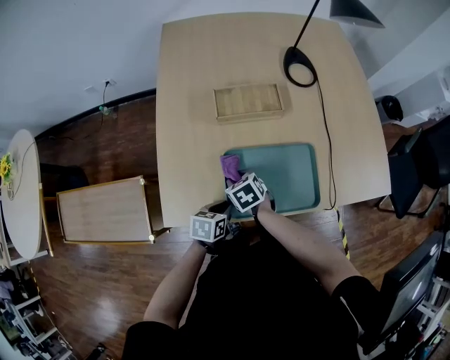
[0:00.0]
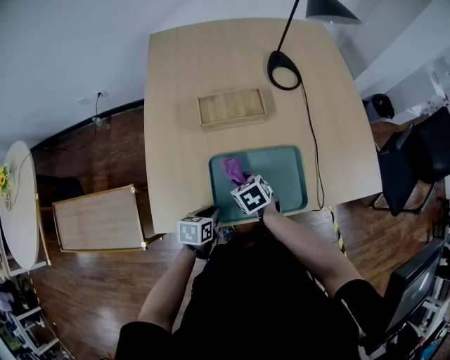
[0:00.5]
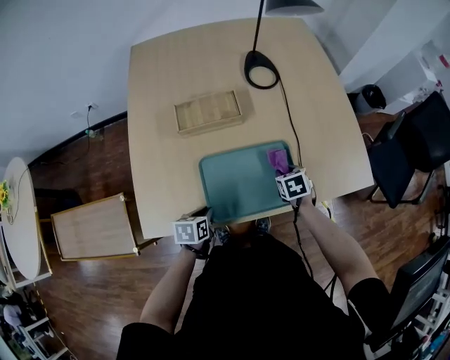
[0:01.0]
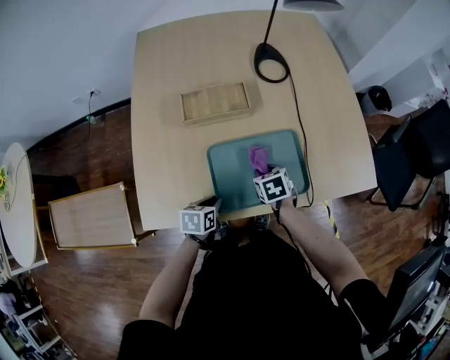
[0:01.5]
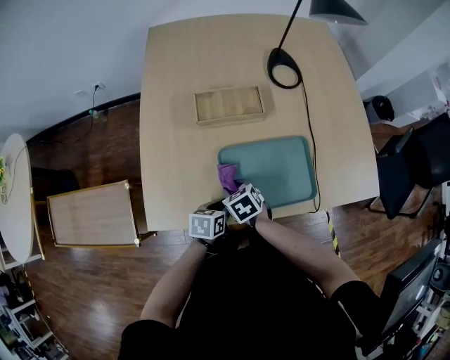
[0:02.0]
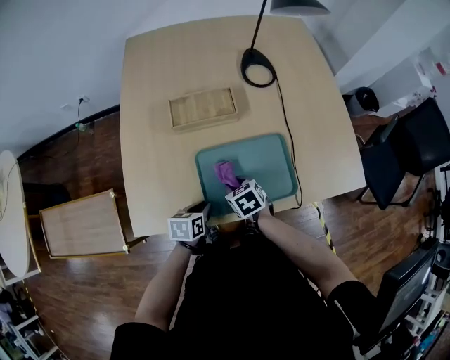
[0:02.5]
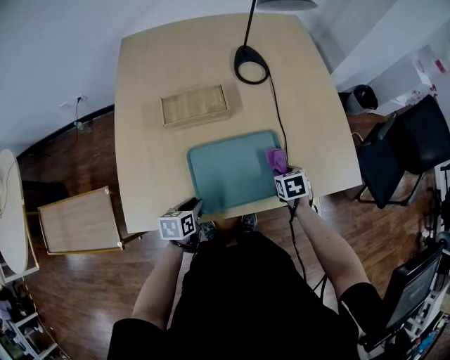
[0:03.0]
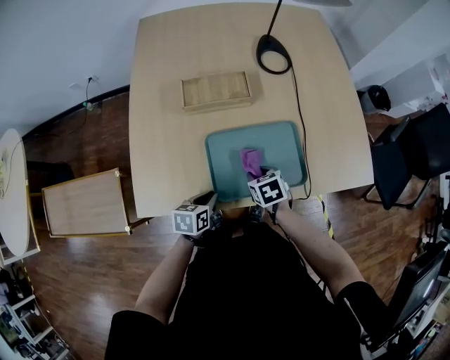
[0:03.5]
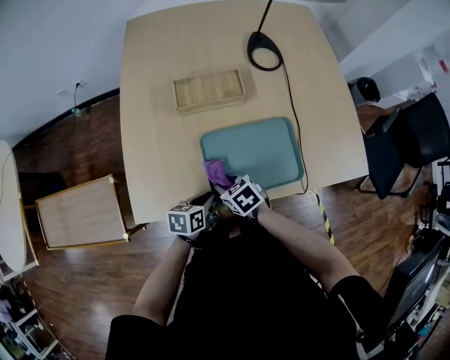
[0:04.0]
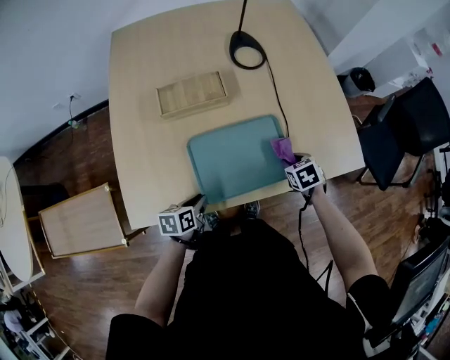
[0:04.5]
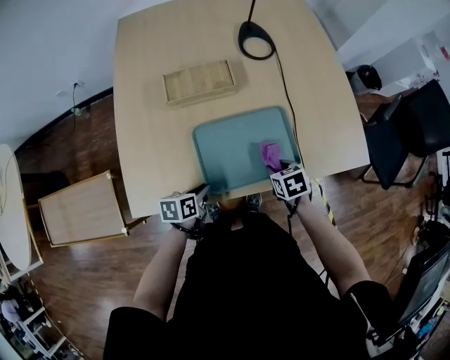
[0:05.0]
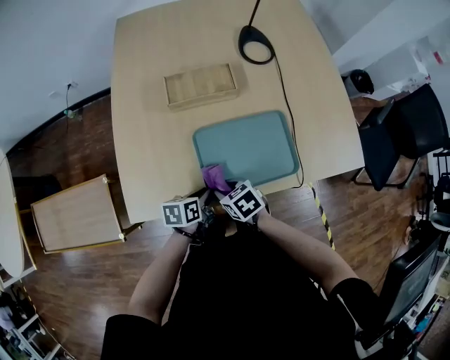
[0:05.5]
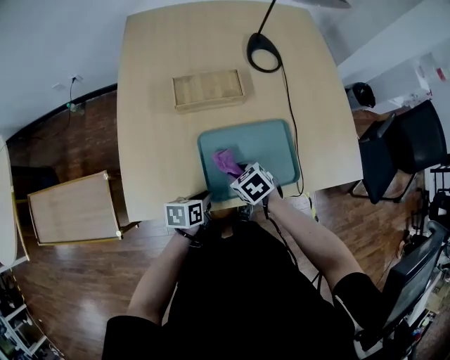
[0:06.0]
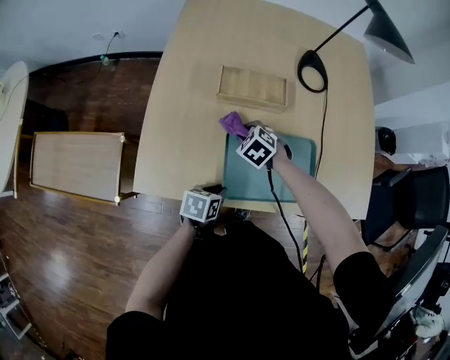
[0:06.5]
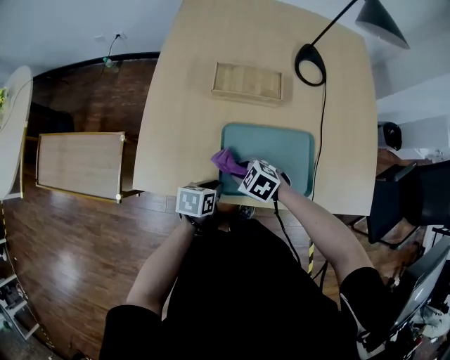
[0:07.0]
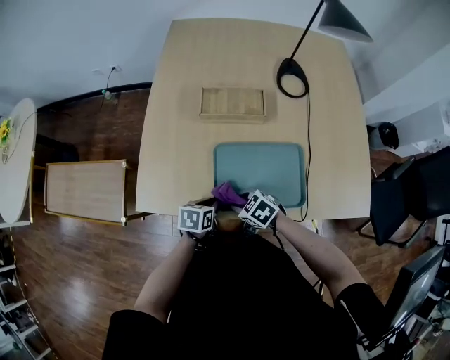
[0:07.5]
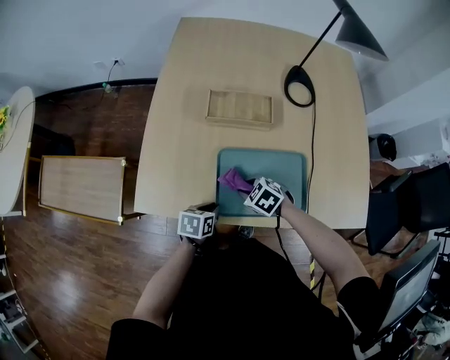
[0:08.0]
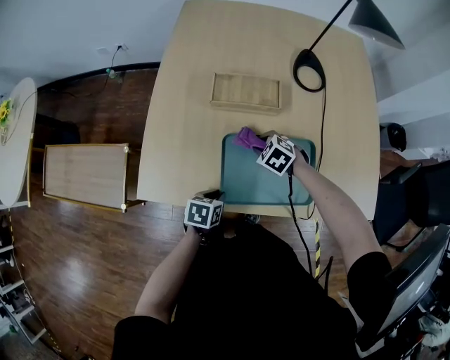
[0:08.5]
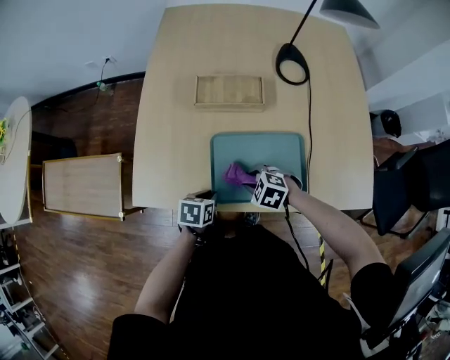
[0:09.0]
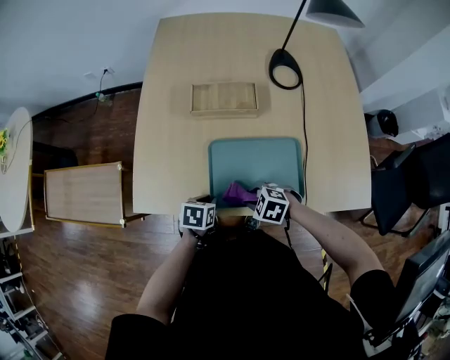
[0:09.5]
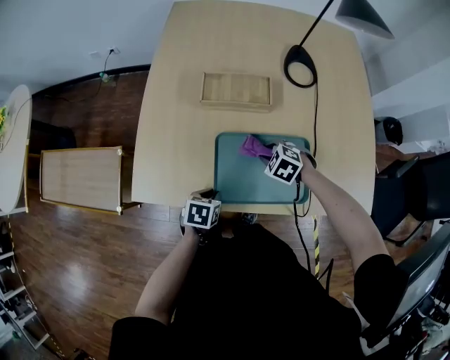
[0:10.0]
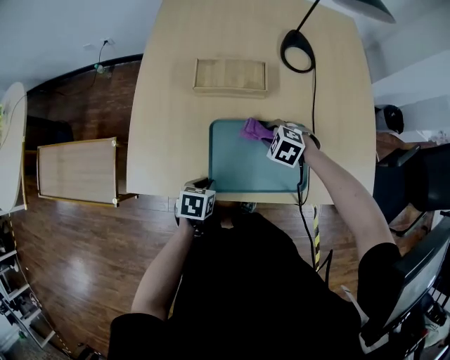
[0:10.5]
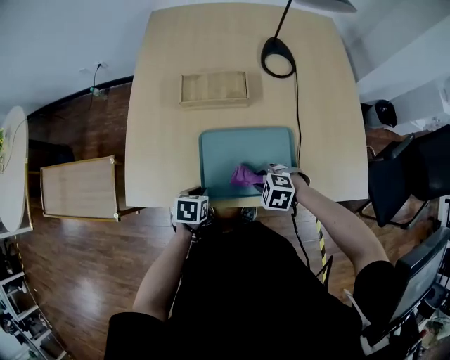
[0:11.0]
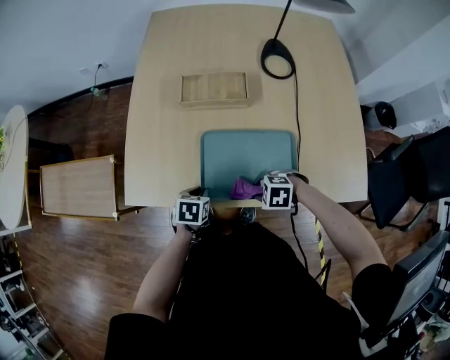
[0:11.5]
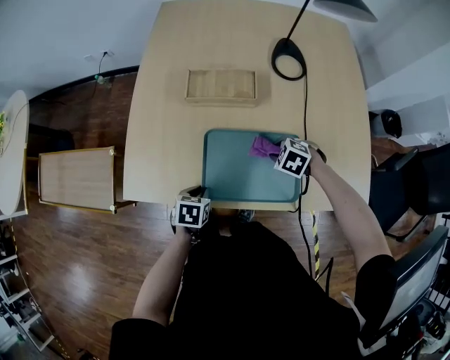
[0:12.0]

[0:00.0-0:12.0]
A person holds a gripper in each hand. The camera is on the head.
0.0 to 2.0 s: The left gripper shifts roughly 5 cm to the right, while the right gripper reaches some 30 cm to the right, then returns.
2.0 to 4.0 s: The right gripper reaches about 30 cm to the right, then returns.
4.0 to 6.0 s: The right gripper goes left and right, about 30 cm each way, reversing 2 times.
6.0 to 8.0 s: The right gripper rotates some 30 degrees.
8.0 to 10.0 s: The right gripper ends up roughly 10 cm from where it was.

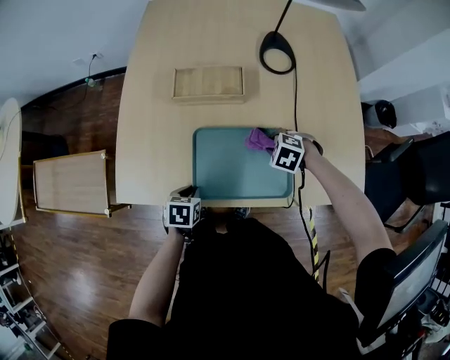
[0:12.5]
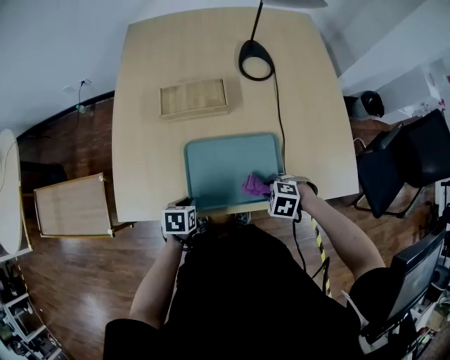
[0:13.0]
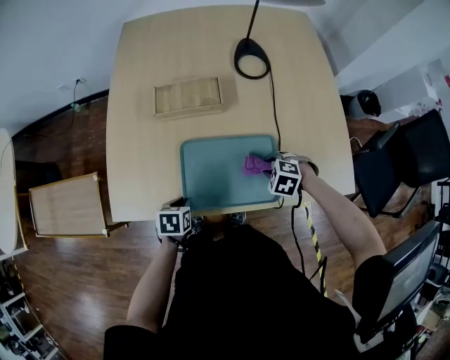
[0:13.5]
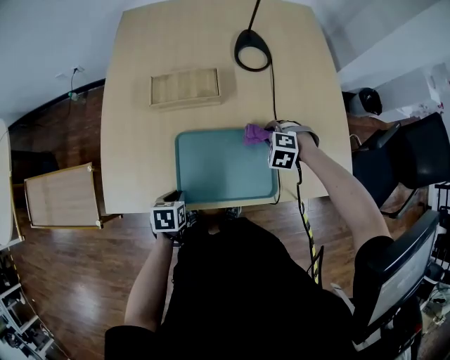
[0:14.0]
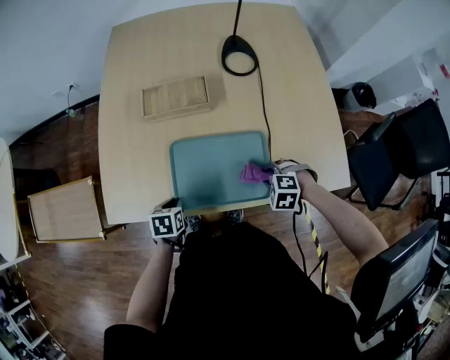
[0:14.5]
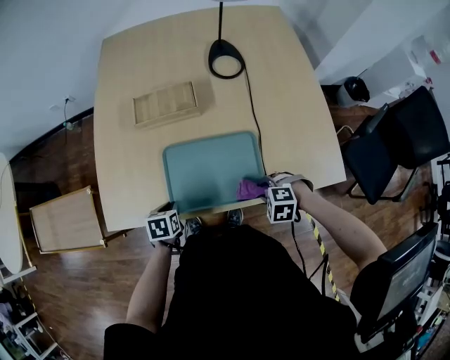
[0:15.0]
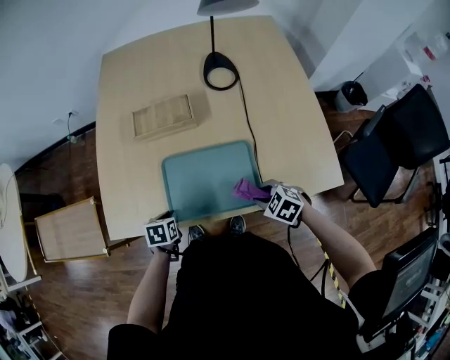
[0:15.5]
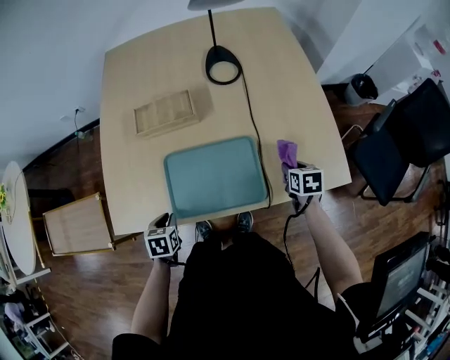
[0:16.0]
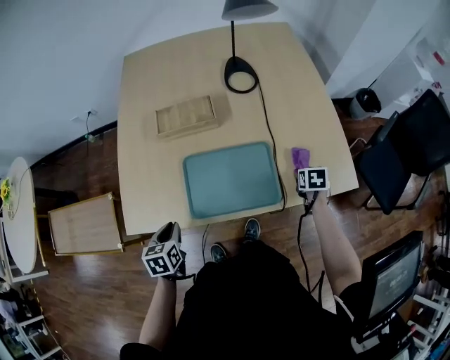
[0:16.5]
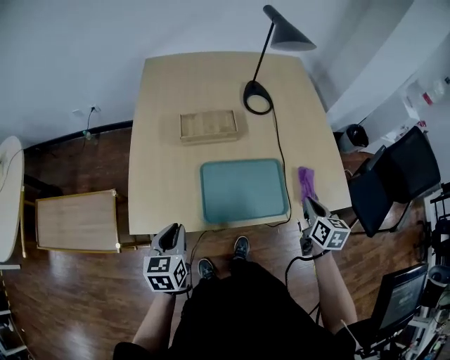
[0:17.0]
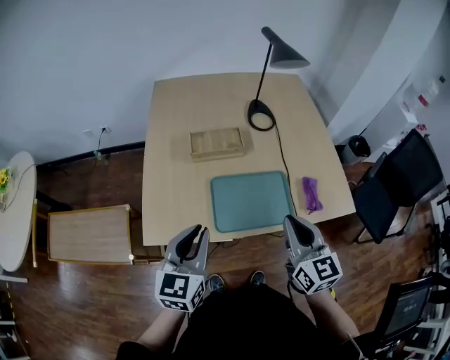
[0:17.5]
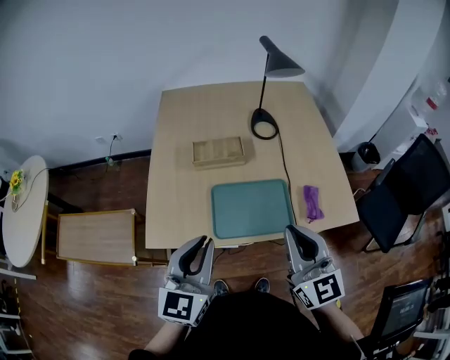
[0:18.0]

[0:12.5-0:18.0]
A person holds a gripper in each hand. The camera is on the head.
12.5 to 14.5 s: The right gripper moves roughly 10 cm.
14.5 to 16.0 s: The right gripper changes place by some 15 cm, and twists approximately 90 degrees clockwise, seen from behind.
16.0 to 18.0 s: The left gripper travels upward by roughly 35 cm, and points its fingers approximately 60 degrees further upward, while the right gripper moves upward, to the left and backward, about 50 cm, points its fingers approximately 60 degrees further upward, and closes.

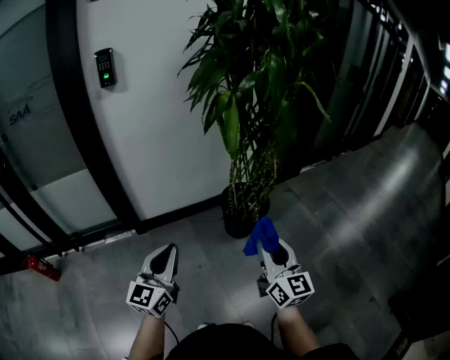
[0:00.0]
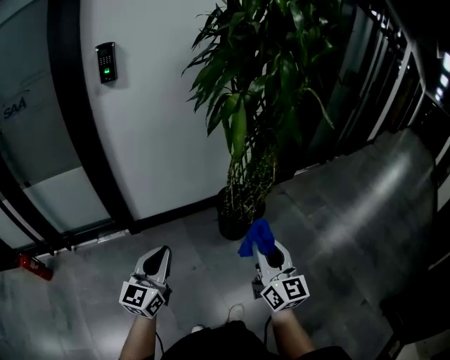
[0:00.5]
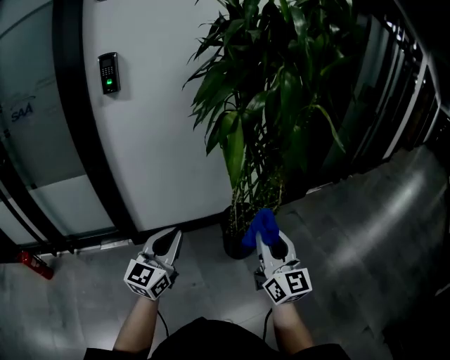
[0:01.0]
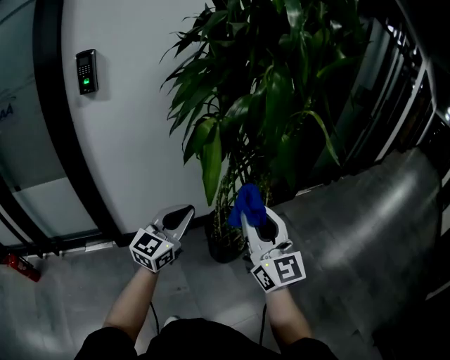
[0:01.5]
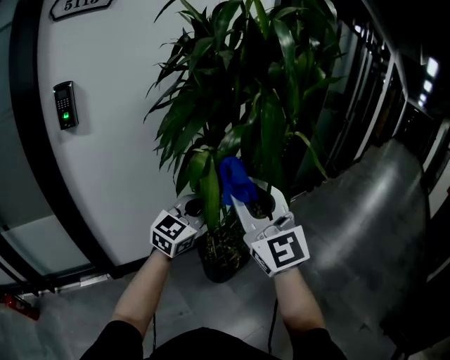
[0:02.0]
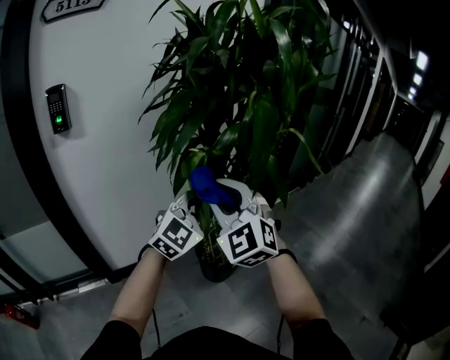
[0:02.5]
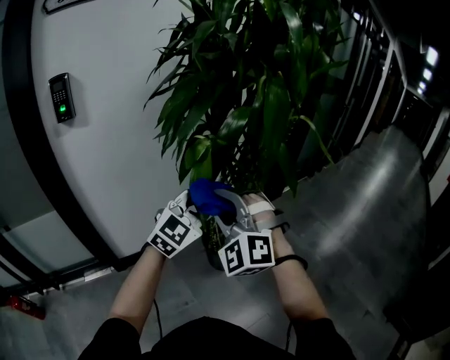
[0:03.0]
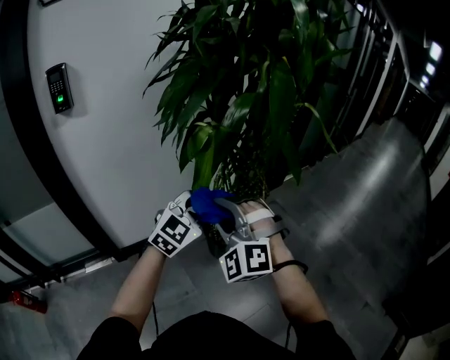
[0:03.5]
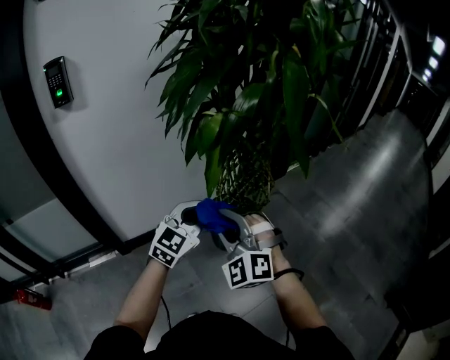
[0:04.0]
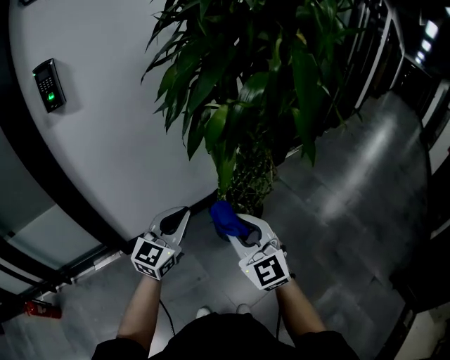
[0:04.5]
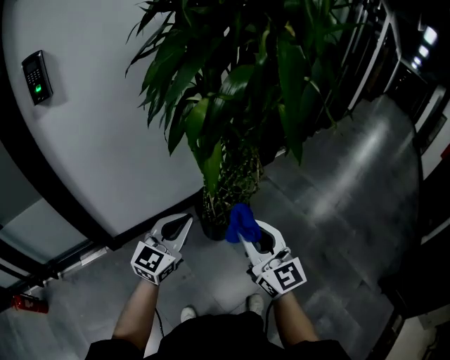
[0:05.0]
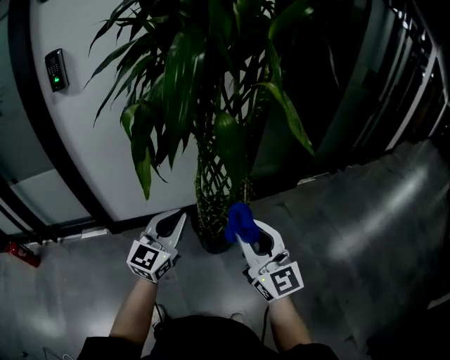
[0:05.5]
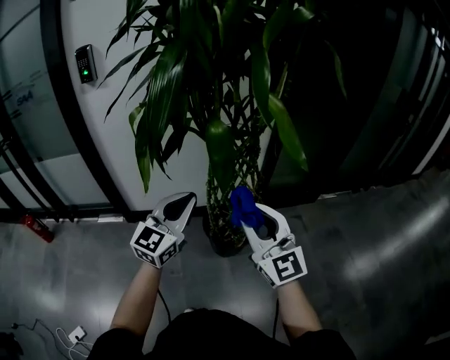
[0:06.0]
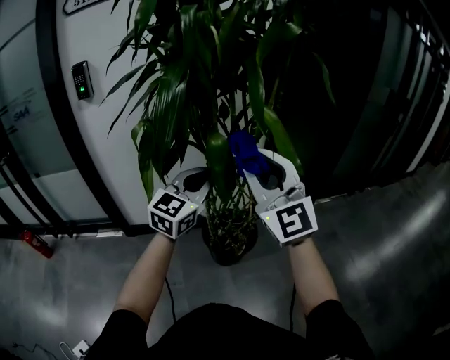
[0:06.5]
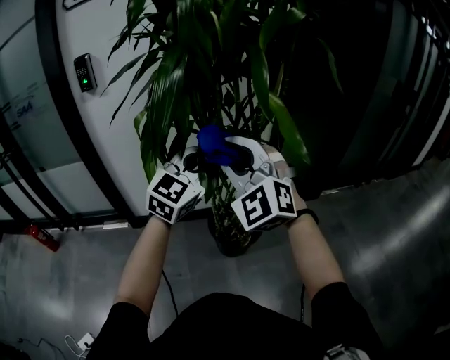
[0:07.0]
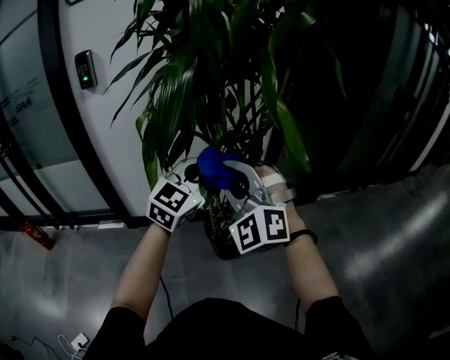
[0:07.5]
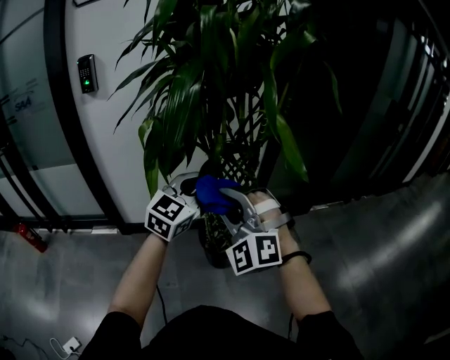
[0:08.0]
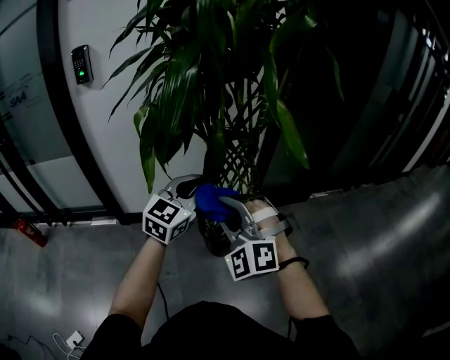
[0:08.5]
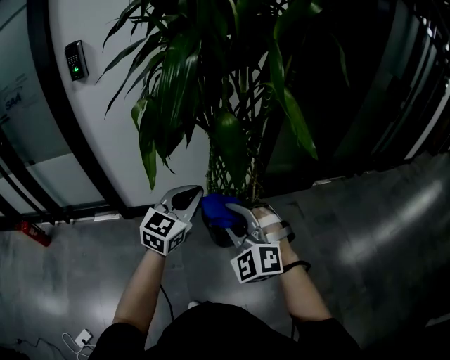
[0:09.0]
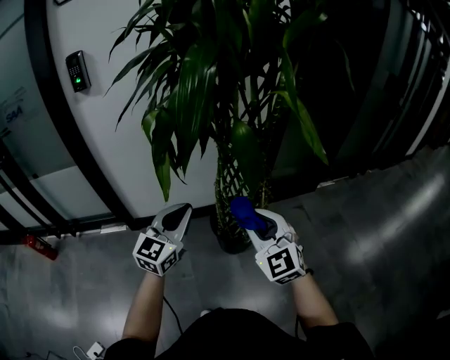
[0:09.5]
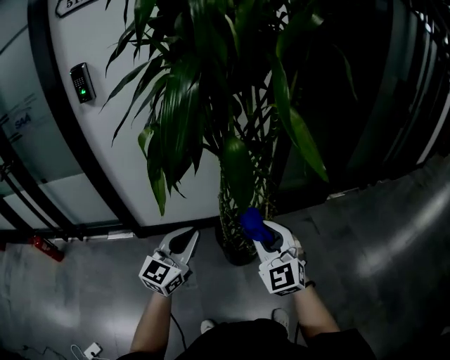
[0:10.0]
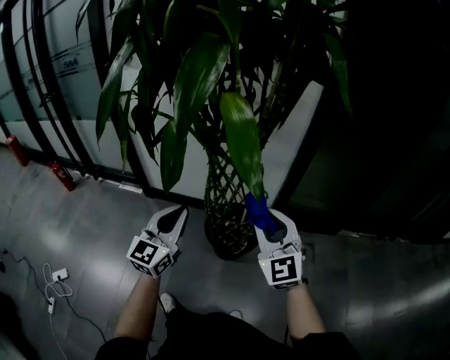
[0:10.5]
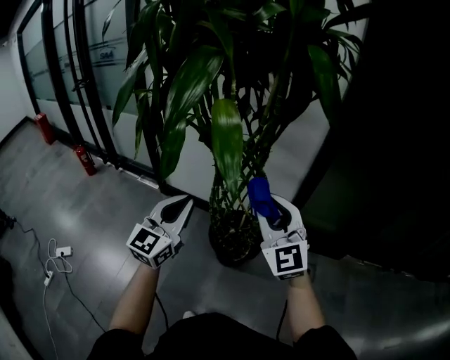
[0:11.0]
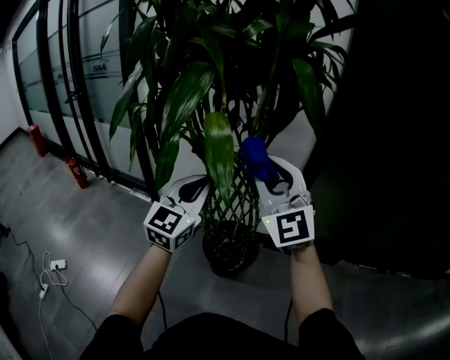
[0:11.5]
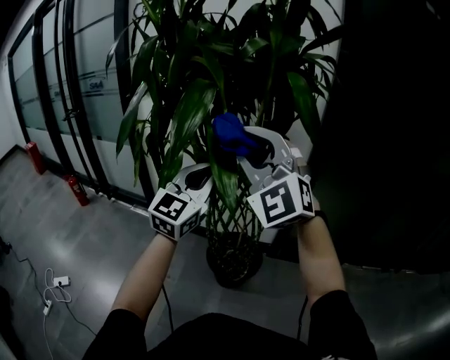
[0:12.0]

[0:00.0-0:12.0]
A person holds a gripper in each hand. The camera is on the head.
0.0 to 2.0 s: The left gripper moves forward and to the right, roughly 40 cm, and turns by some 30 degrees. Meanwhile the right gripper moves forward and upward, roughly 35 cm, and rotates about 40 degrees.
2.0 to 4.0 s: The left gripper goes roughly 10 cm downward and backward; the right gripper shifts approximately 20 cm downward, and angles its fingers downward, by approximately 30 degrees.
4.0 to 6.0 s: The left gripper ends up about 15 cm from where it was, and turns by some 30 degrees, while the right gripper shifts by about 30 cm, and swivels some 60 degrees.
6.0 to 8.0 s: The left gripper travels forward and upward by about 10 cm. The right gripper heads to the left, covering some 10 cm, reaches some 15 cm upward, then returns, and rolls counterclockwise, seen from behind, by about 50 degrees.
8.0 to 10.0 s: The left gripper travels downward, backward and to the left by approximately 15 cm, while the right gripper goes about 10 cm downward and to the right, and changes its angle by about 40 degrees.
10.0 to 12.0 s: The left gripper shifts by some 30 cm, and rotates roughly 30 degrees; the right gripper is displaced upward by approximately 30 cm, and changes its angle by approximately 50 degrees.
